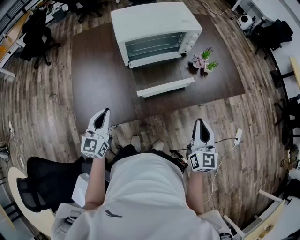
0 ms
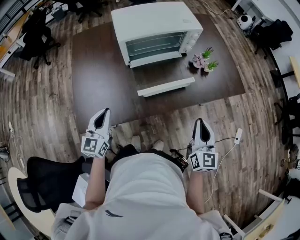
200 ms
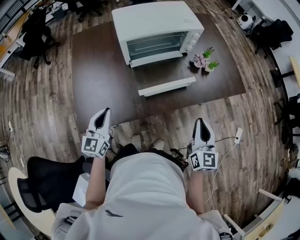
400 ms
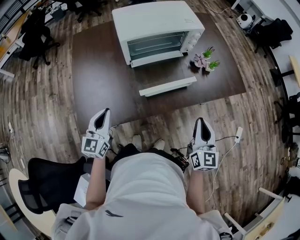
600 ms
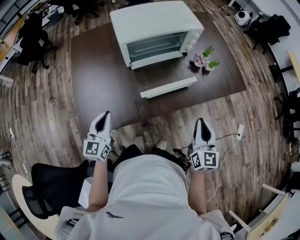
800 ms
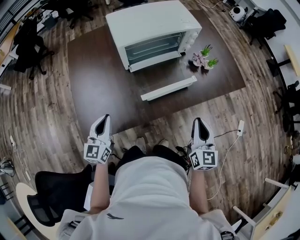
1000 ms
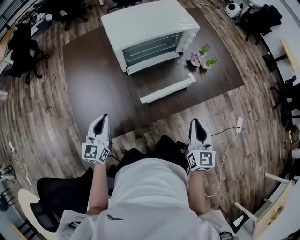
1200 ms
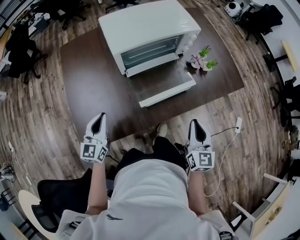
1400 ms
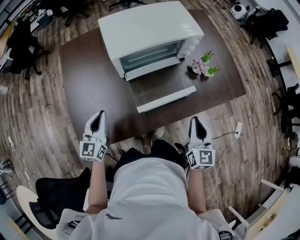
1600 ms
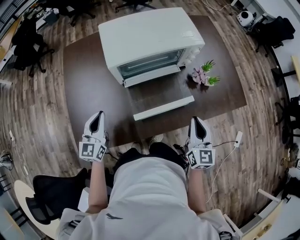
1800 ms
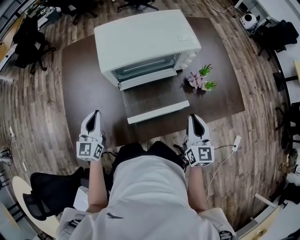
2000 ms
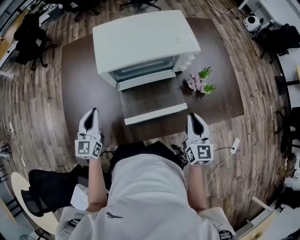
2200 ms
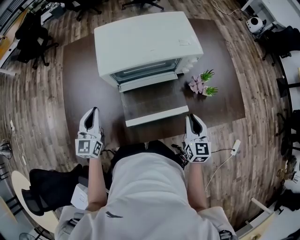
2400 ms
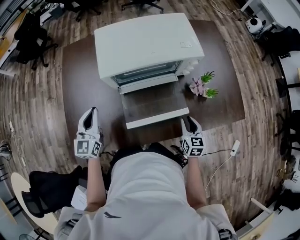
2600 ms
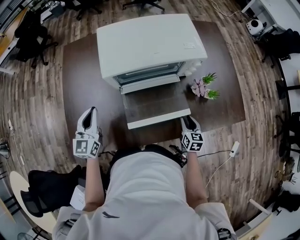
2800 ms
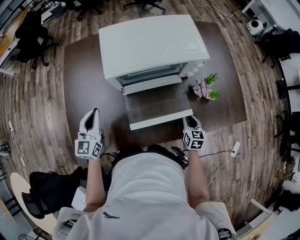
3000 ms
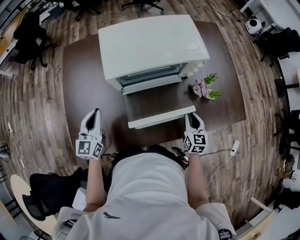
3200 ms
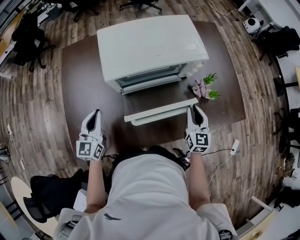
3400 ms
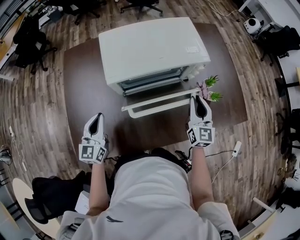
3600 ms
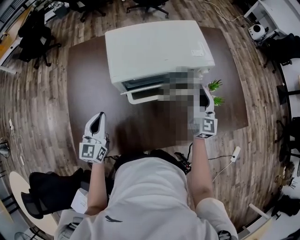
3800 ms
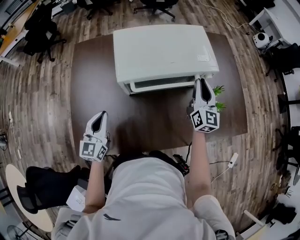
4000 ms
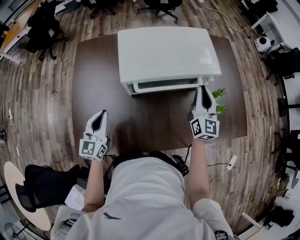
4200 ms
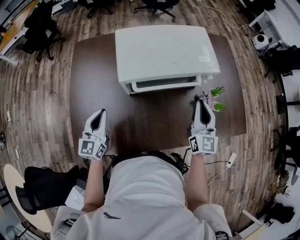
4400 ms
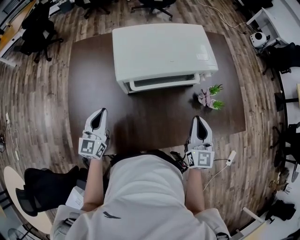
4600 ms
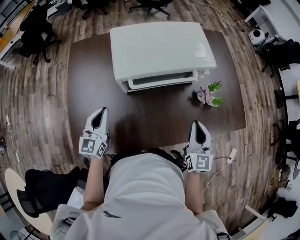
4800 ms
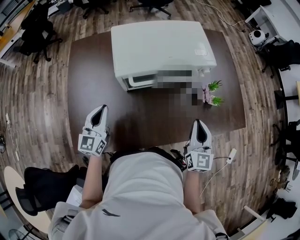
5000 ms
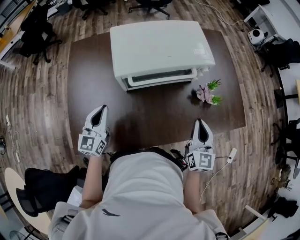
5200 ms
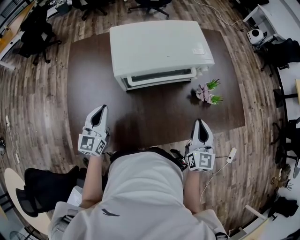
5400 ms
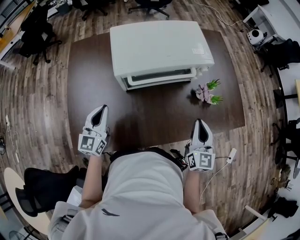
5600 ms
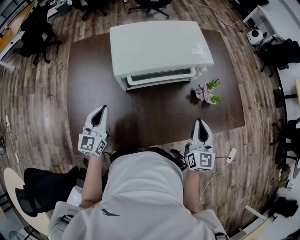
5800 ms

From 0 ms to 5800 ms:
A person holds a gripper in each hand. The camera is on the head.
From 0 ms to 1400 ms: The left gripper goes about 10 cm forward and to the left, while the right gripper moves to the left, about 5 cm.
From 1400 ms to 2800 ms: The right gripper shifts about 25 cm downward, forward and to the right, turns by roughly 30 degrees, and opens; the left gripper goes about 10 cm forward.
From 2800 ms to 4400 ms: The right gripper moves upward, approximately 25 cm, angles its fingers upward, by some 40 degrees, and closes its fingers.
From 4400 ms to 5800 ms: The right gripper shifts approximately 10 cm backward.

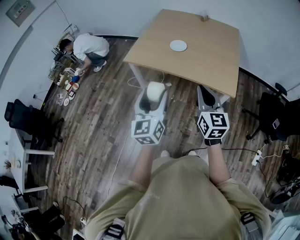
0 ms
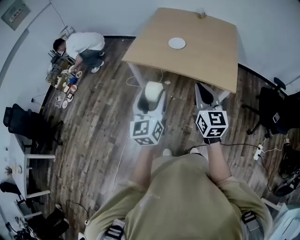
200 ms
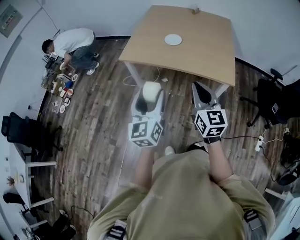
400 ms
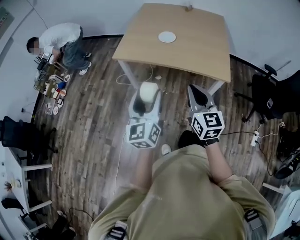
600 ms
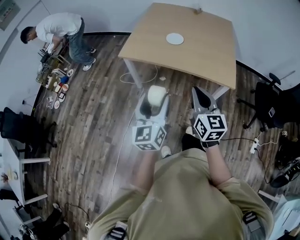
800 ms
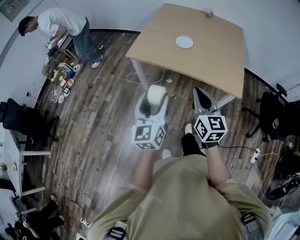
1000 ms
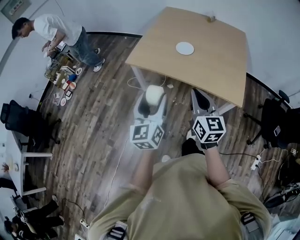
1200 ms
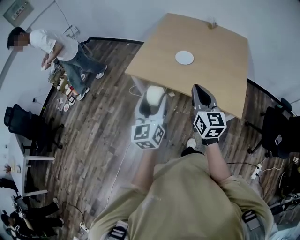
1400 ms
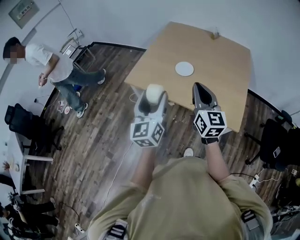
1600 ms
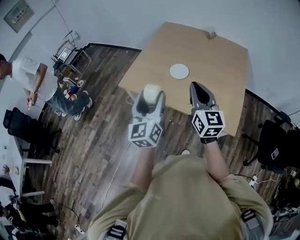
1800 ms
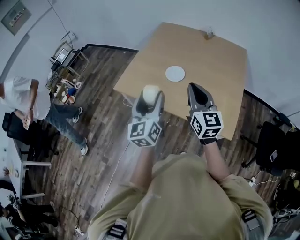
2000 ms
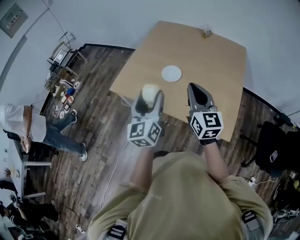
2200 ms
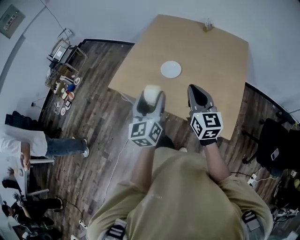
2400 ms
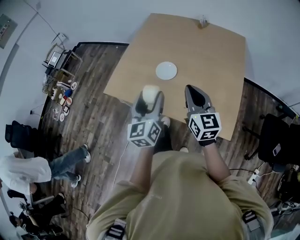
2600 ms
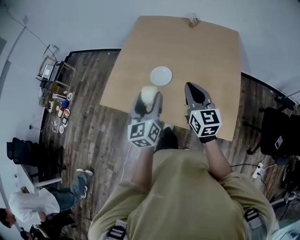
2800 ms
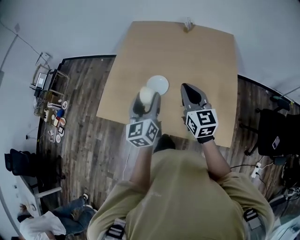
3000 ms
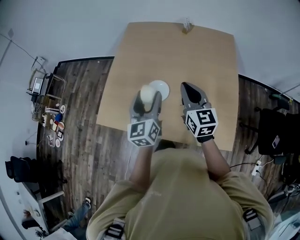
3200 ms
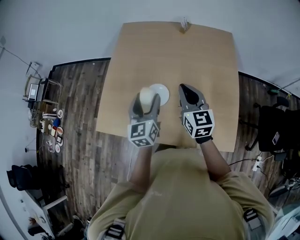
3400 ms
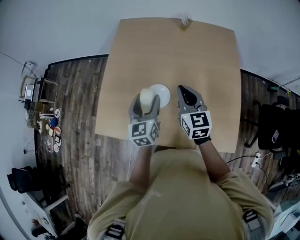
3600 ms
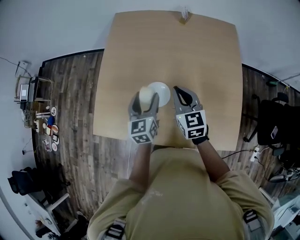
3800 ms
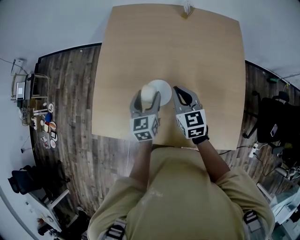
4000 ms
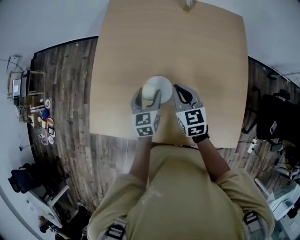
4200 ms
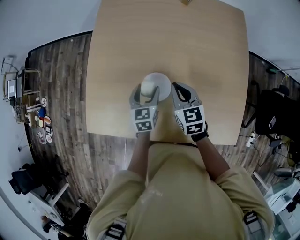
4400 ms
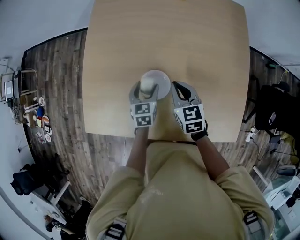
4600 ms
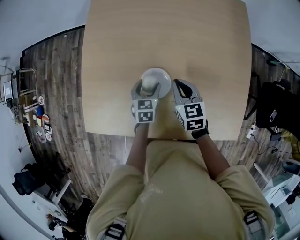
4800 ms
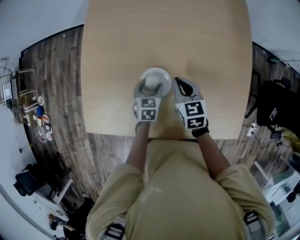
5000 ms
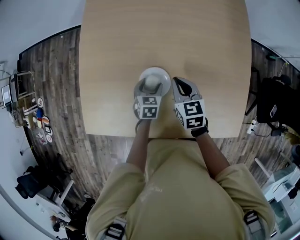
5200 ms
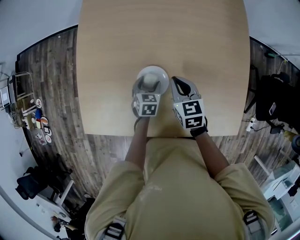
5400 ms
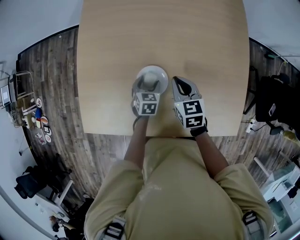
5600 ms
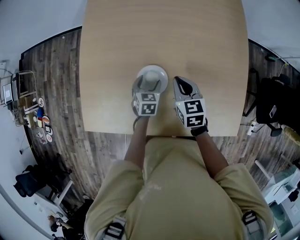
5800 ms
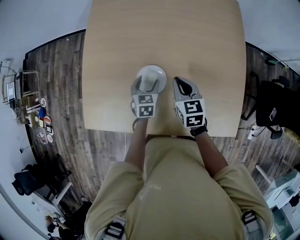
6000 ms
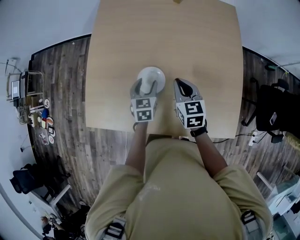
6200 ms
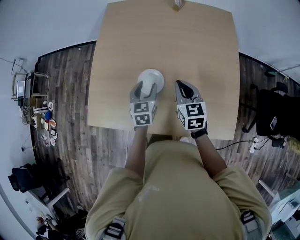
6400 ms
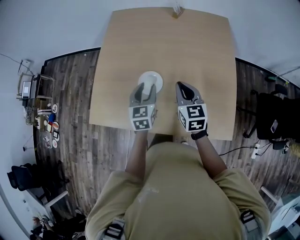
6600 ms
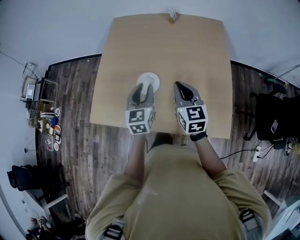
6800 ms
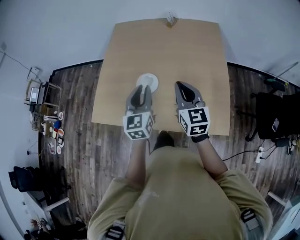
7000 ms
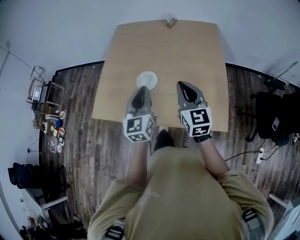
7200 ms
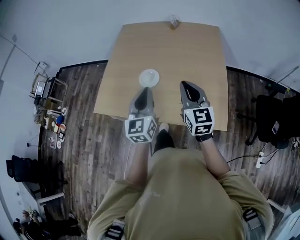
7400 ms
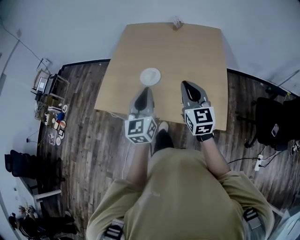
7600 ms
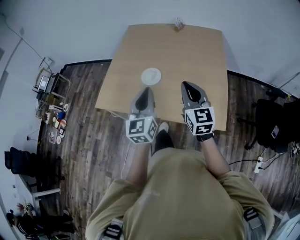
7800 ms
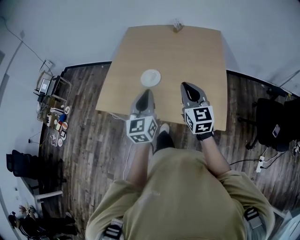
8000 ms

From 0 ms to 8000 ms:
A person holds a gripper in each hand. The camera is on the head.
From 0 ms to 1600 ms: The two grippers go roughly 20 cm forward.
From 1600 ms to 3200 ms: The grippers both shift forward and to the right by approximately 35 cm.
From 3200 ms to 4800 ms: Both grippers travel together downward and forward, about 30 cm. The left gripper angles its fingers downward, by some 40 degrees. Meanwhile the right gripper tips its fingers downward by some 30 degrees.
From 4800 ms to 6400 ms: The left gripper is displaced upward and backward by roughly 15 cm; the right gripper heads upward, backward and to the right, covering roughly 15 cm.
From 6400 ms to 8000 ms: The grippers both shift backward and upward by approximately 30 cm. The left gripper changes its angle by some 30 degrees, and closes, while the right gripper rotates approximately 20 degrees.

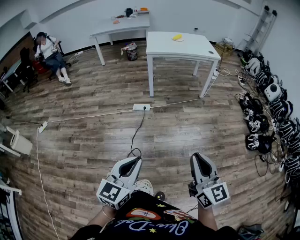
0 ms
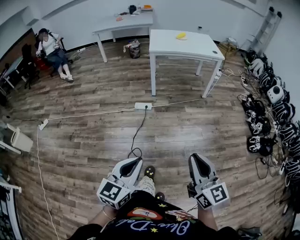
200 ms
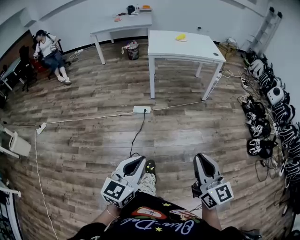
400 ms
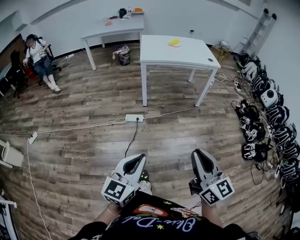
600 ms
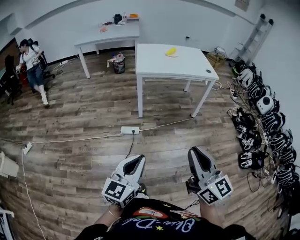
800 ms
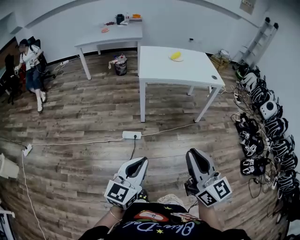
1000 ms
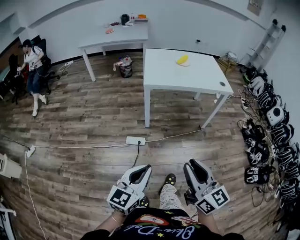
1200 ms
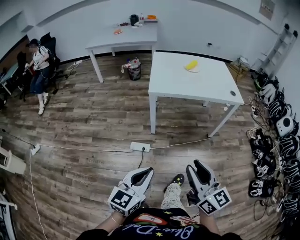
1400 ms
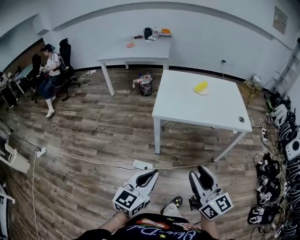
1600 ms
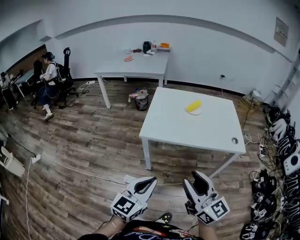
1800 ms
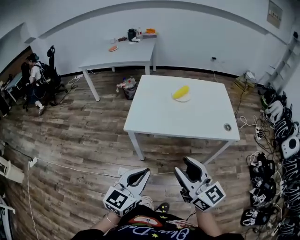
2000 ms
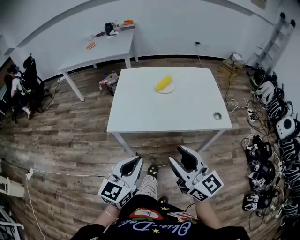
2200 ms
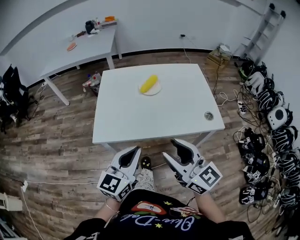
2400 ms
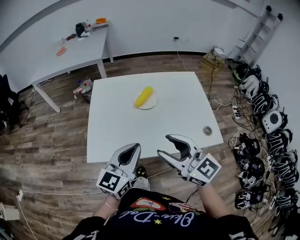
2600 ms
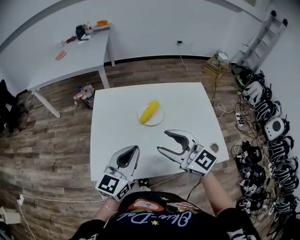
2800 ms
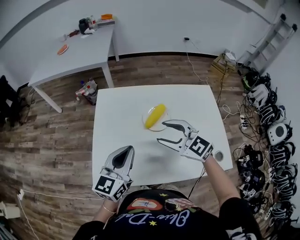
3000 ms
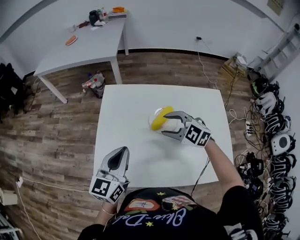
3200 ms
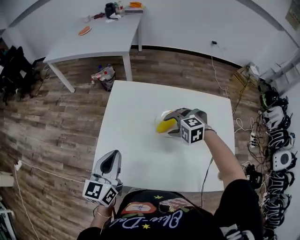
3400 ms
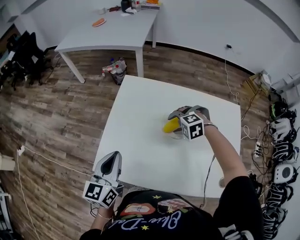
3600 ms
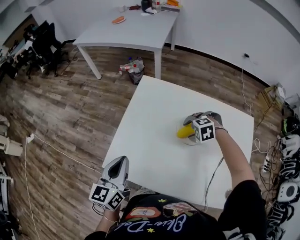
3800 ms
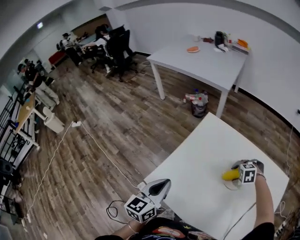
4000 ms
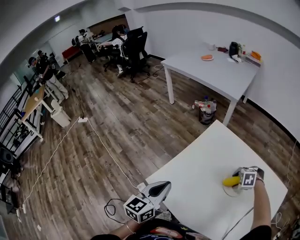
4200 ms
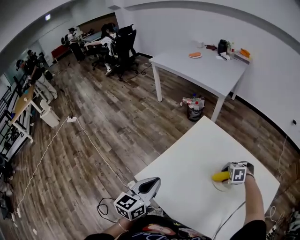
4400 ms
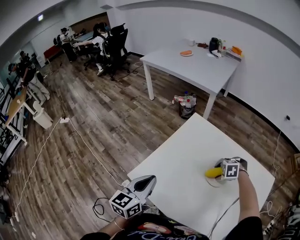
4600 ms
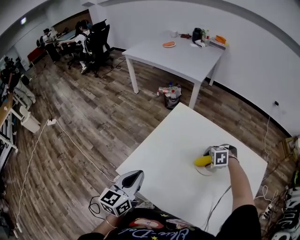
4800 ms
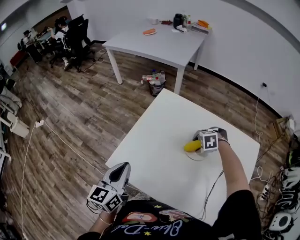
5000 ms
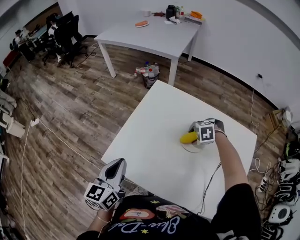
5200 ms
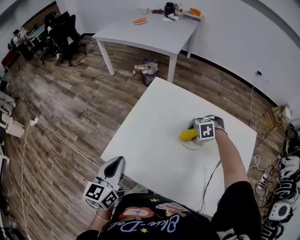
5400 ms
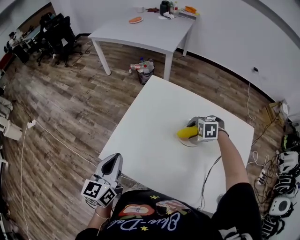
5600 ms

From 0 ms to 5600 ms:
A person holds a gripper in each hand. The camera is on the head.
From 0 ms to 1400 ms: Both grippers are carried forward, roughly 50 cm. The right gripper opens its fingers.
From 1400 ms to 2800 ms: The two grippers travel together, forward, about 70 cm. The right gripper turns by roughly 30 degrees, and opens up.
From 2800 ms to 4200 ms: The right gripper travels downward by about 25 cm, and tilts its fingers some 70 degrees downward; the left gripper moves some 20 cm, and changes its angle by roughly 50 degrees.
From 4200 ms to 5600 ms: The grippers move only a little.

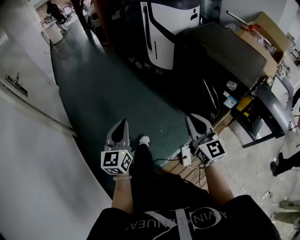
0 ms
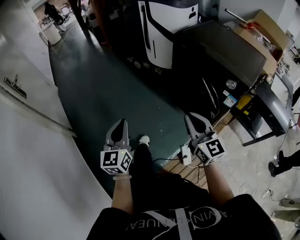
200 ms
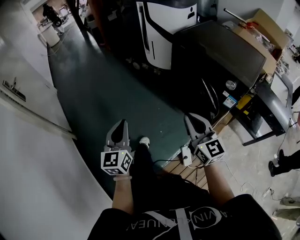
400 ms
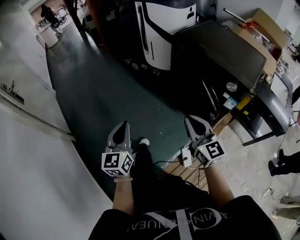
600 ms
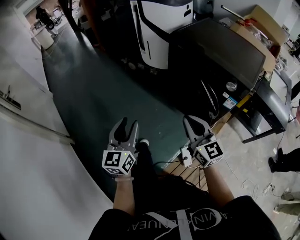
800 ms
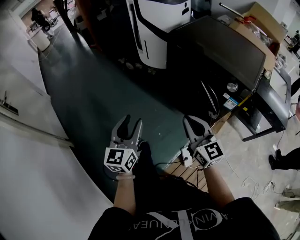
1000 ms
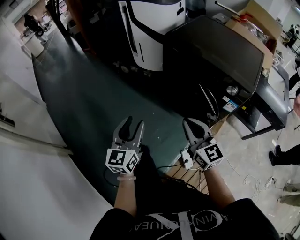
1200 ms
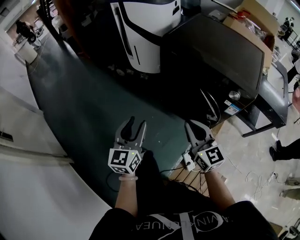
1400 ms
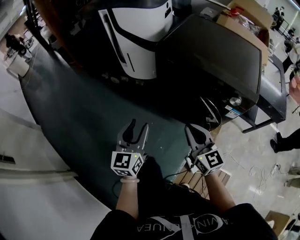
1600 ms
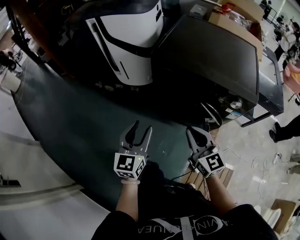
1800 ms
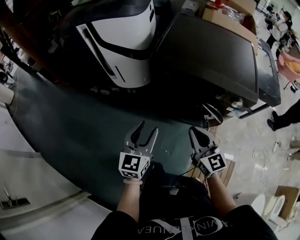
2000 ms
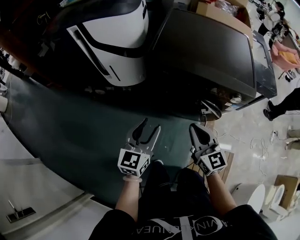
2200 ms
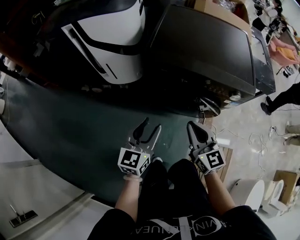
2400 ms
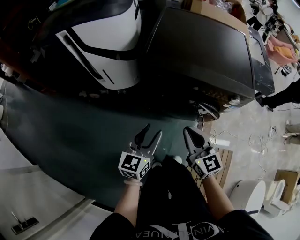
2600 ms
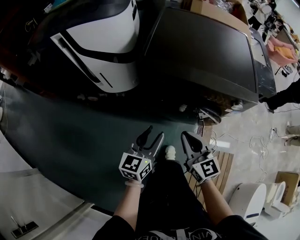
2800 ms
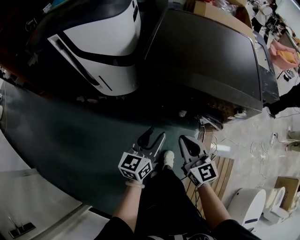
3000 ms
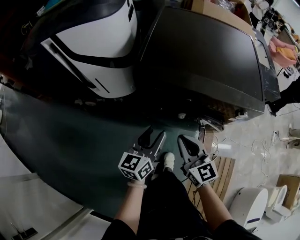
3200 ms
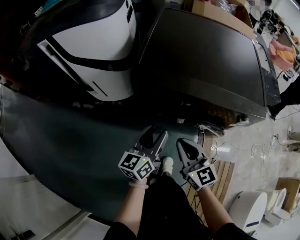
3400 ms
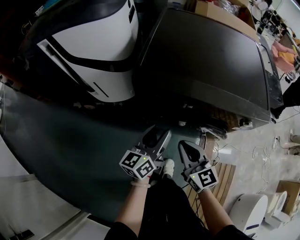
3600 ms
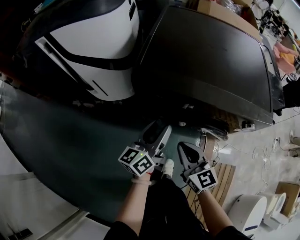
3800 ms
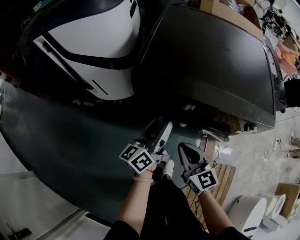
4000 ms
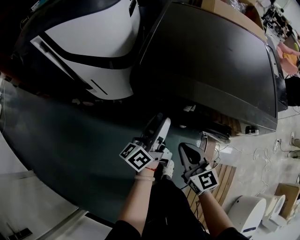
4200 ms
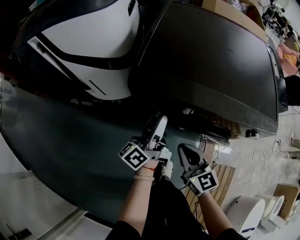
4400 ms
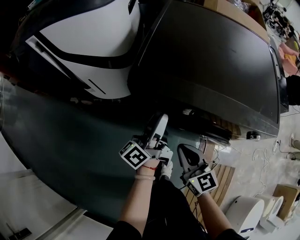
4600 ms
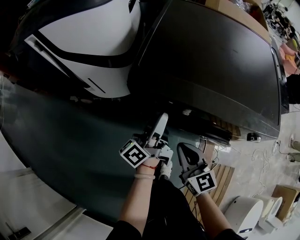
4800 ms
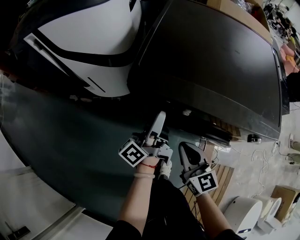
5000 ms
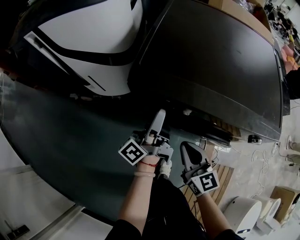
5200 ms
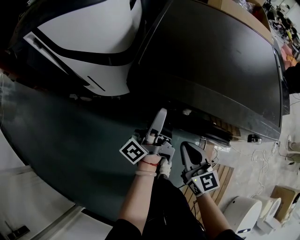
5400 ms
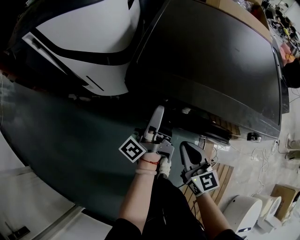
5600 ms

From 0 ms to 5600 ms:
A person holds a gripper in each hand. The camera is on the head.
From 0 ms to 1400 ms: The left gripper goes roughly 20 cm forward and to the right, swivels roughly 20 degrees, and opens. Meanwhile the right gripper is displaced forward by roughly 15 cm.
From 1400 ms to 2800 ms: The left gripper ends up roughly 20 cm from where it was, and turns by approximately 40 degrees; the right gripper ends up some 15 cm from where it was, and changes its angle by roughly 30 degrees.
From 2800 ms to 4200 ms: The left gripper heads forward, covering approximately 15 cm, and swivels some 50 degrees; the right gripper goes about 15 cm downward and forward.
From 4200 ms to 5600 ms: The left gripper changes its angle by some 30 degrees.
